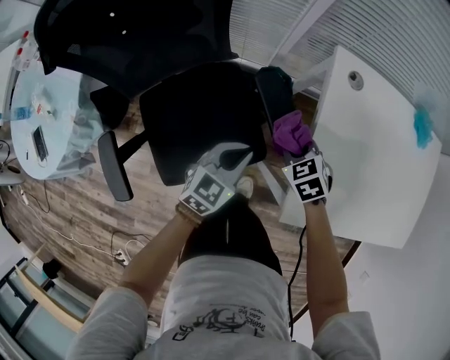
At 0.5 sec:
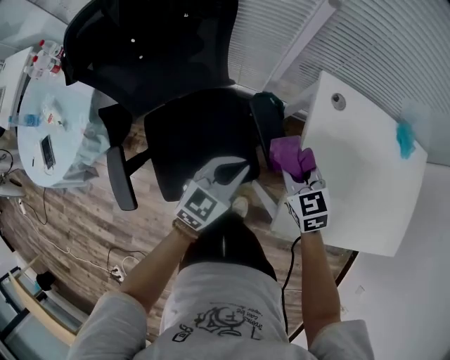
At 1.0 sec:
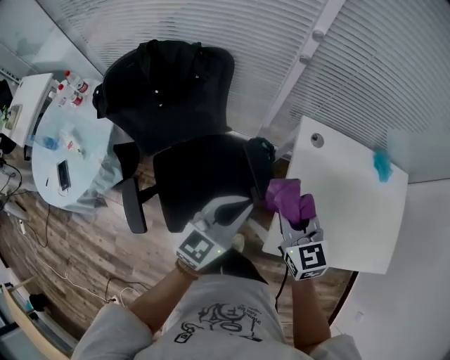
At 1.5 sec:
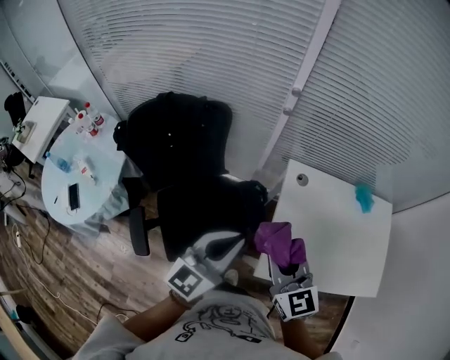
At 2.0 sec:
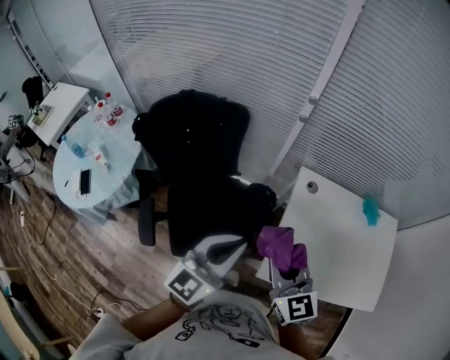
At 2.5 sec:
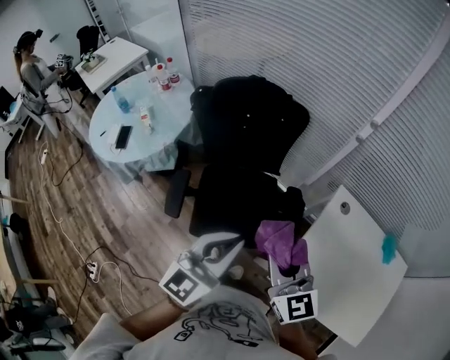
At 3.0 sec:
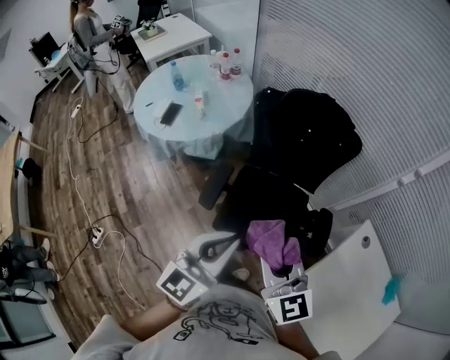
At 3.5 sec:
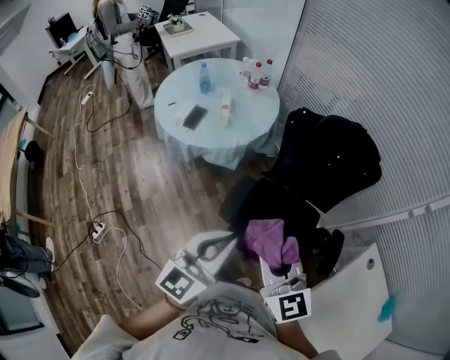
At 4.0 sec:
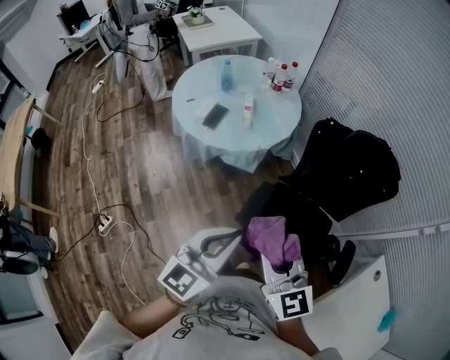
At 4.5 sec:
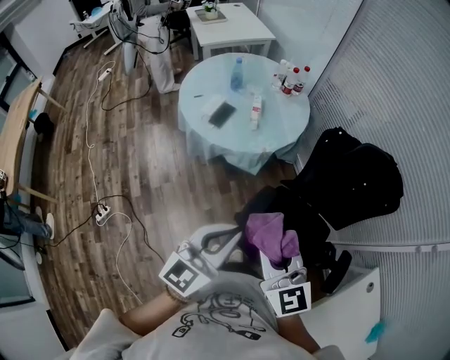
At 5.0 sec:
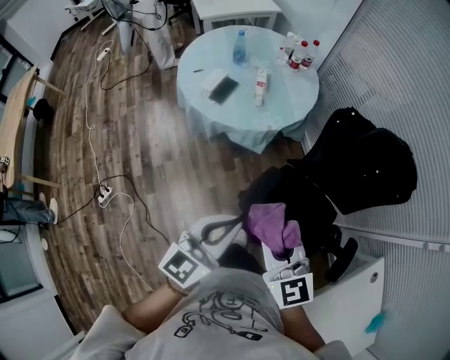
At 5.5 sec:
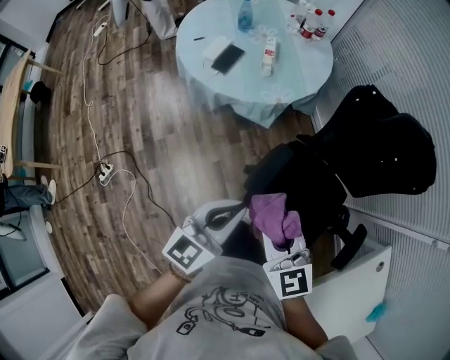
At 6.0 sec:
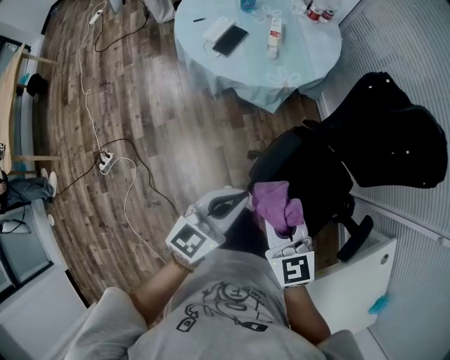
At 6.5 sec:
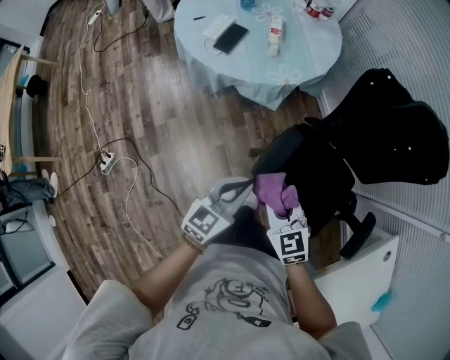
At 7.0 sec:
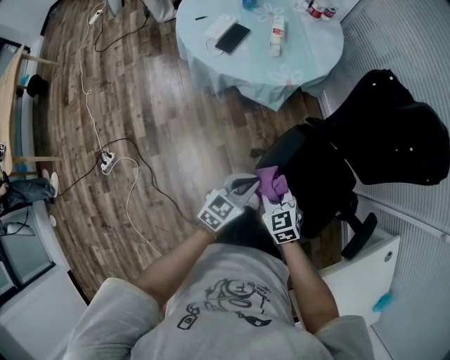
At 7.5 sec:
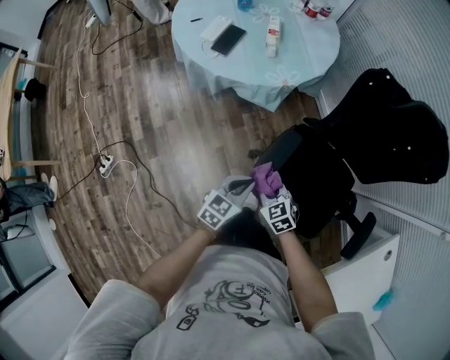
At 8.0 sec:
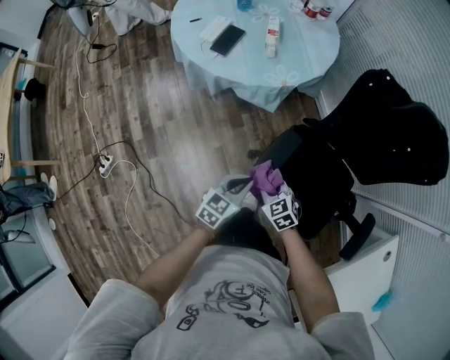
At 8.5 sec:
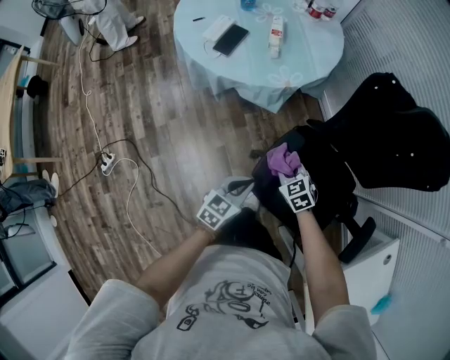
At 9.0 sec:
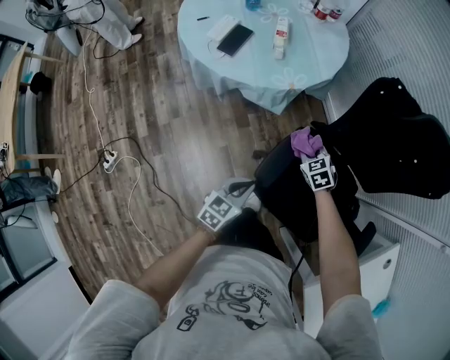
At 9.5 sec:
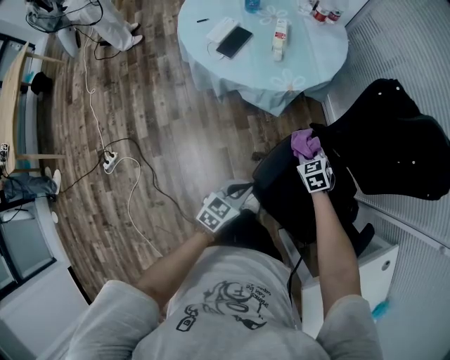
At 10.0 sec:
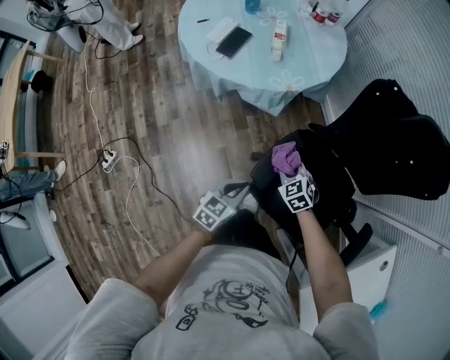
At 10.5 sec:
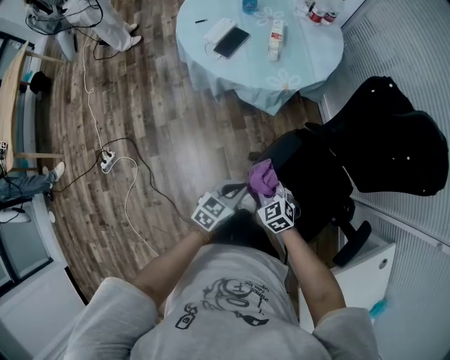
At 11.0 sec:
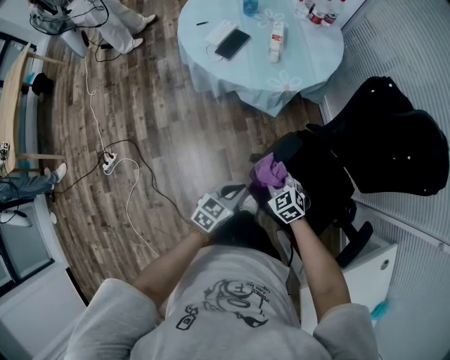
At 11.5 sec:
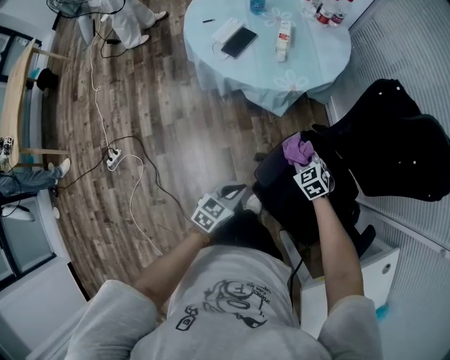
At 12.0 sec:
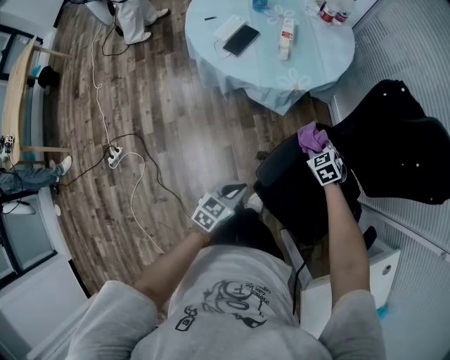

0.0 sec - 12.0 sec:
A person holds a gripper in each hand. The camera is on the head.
0.0 sec - 2.0 sec: Both grippers travel together upward, roughly 40 cm. The right gripper points its fingers approximately 50 degrees further upward. The left gripper tips its fingers upward by some 30 degrees.
2.0 sec - 4.0 sec: The pair of grippers is taken about 50 cm. The right gripper rotates approximately 50 degrees. The left gripper changes its angle by some 50 degrees.
4.0 sec - 6.0 sec: Both grippers travel together downward, roughly 20 cm.
6.0 sec - 8.0 sec: Both grippers move downward, roughly 20 cm. The right gripper turns by approximately 20 degrees.
8.0 sec - 10.0 sec: The right gripper goes some 10 cm forward.
10.0 sec - 12.0 sec: The right gripper travels forward and to the right by approximately 10 cm.

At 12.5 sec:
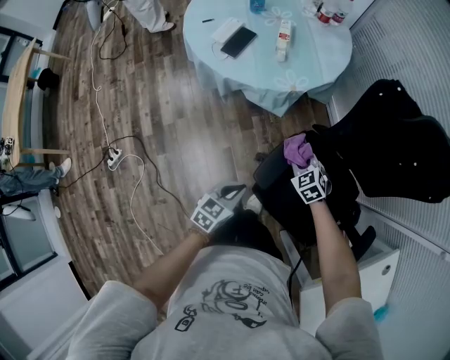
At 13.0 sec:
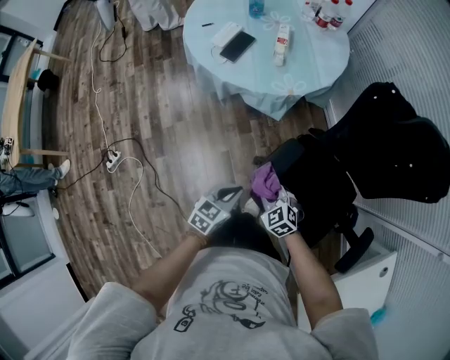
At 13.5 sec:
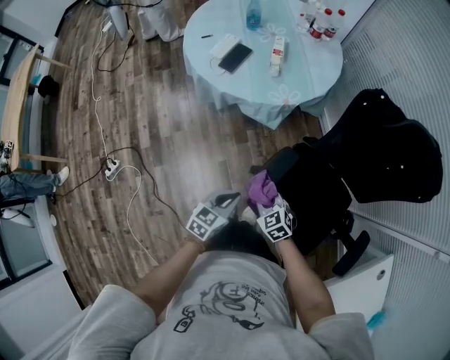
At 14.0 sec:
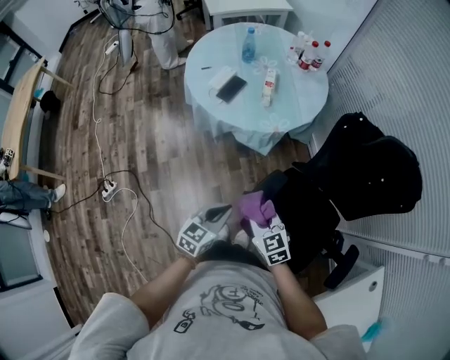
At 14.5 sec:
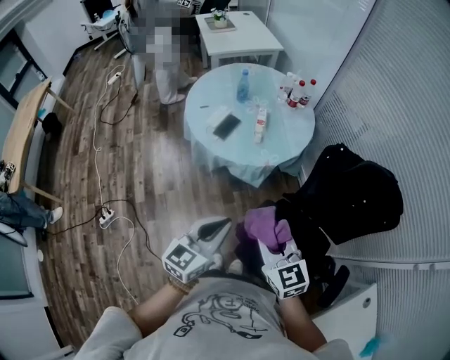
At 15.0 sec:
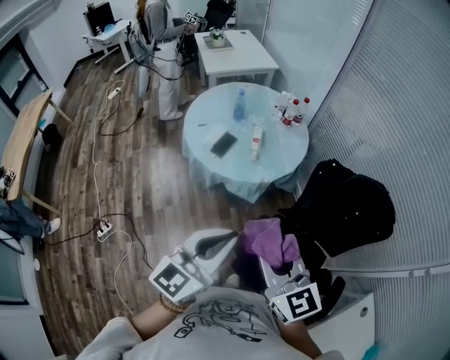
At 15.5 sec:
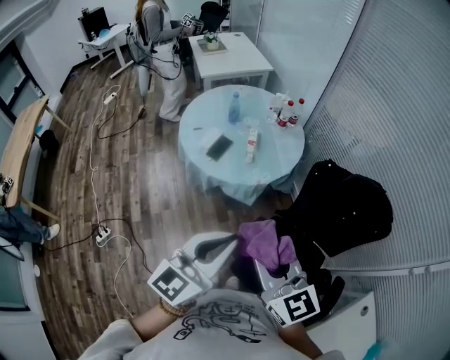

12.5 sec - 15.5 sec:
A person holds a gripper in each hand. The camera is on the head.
12.5 sec - 14.0 sec: The right gripper goes roughly 25 cm upward, backward and to the left, and rotates approximately 20 degrees. The left gripper heads upward, covering about 10 cm.
14.0 sec - 15.5 sec: The two grippers go some 35 cm upward. The right gripper swivels approximately 30 degrees; the left gripper changes its angle by roughly 30 degrees.

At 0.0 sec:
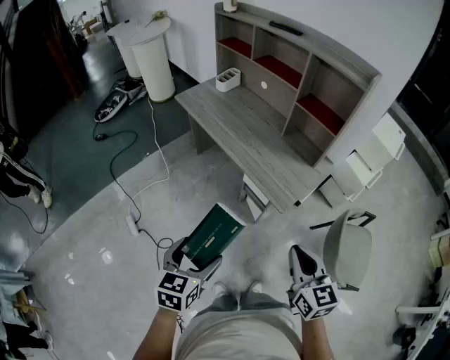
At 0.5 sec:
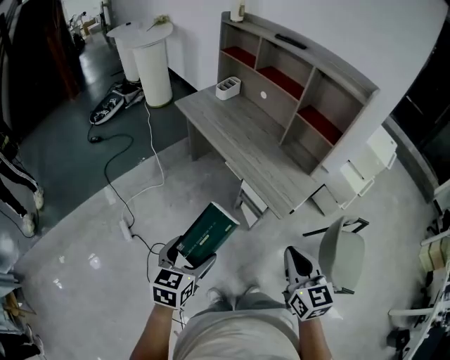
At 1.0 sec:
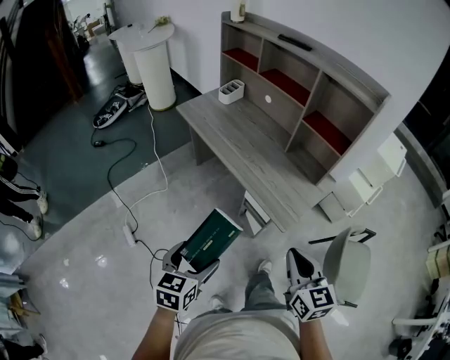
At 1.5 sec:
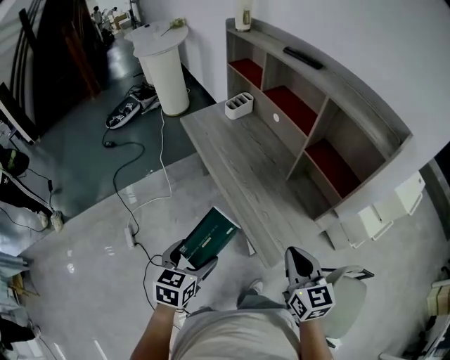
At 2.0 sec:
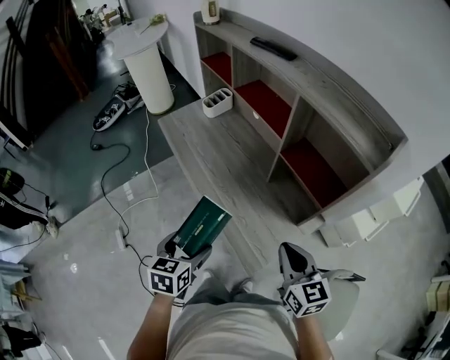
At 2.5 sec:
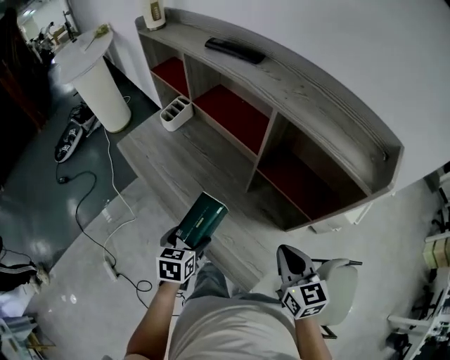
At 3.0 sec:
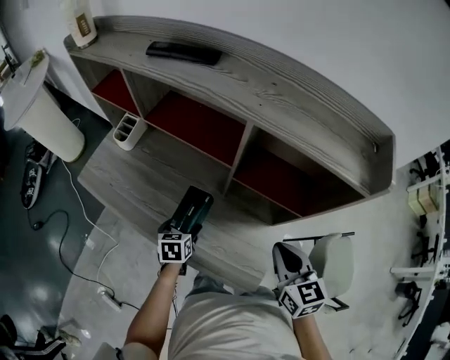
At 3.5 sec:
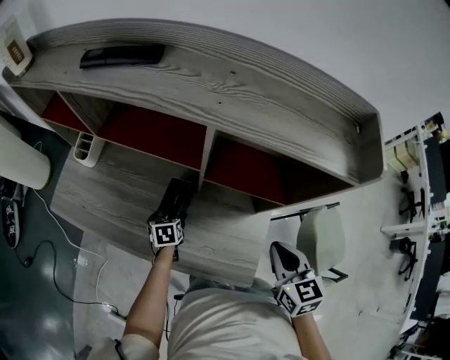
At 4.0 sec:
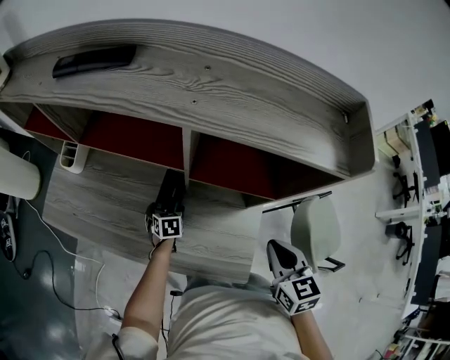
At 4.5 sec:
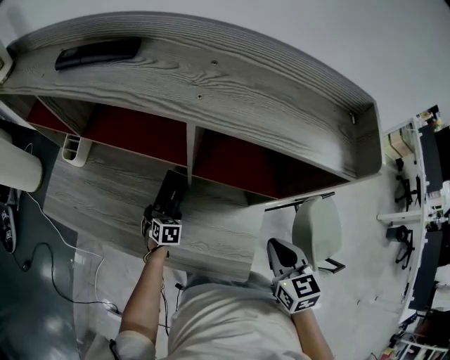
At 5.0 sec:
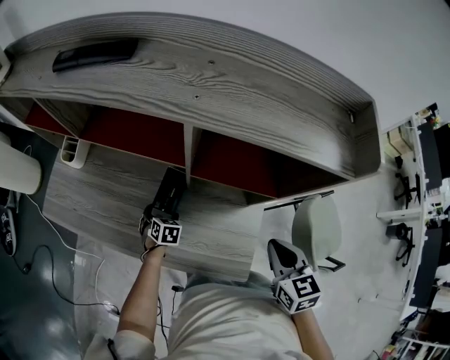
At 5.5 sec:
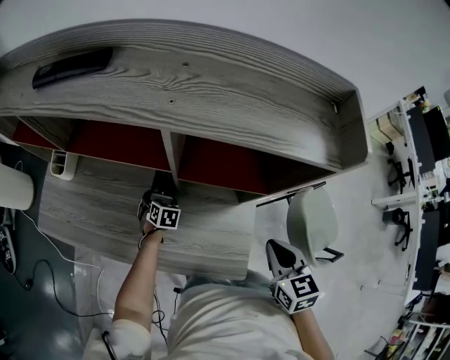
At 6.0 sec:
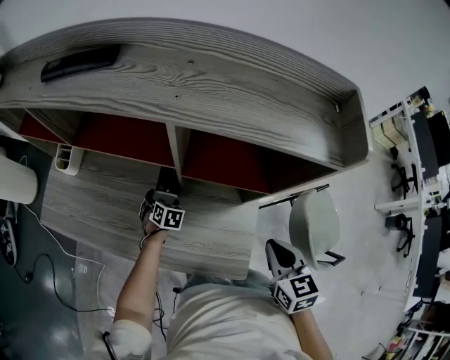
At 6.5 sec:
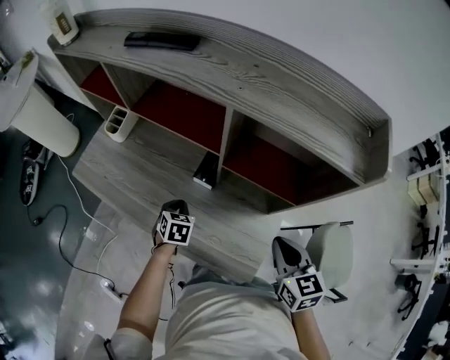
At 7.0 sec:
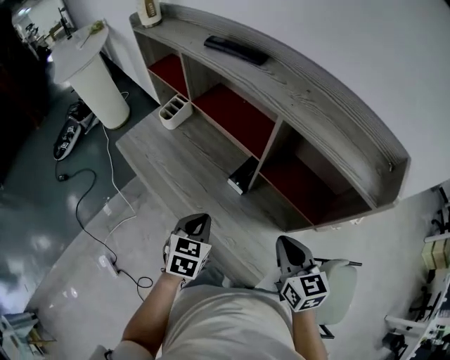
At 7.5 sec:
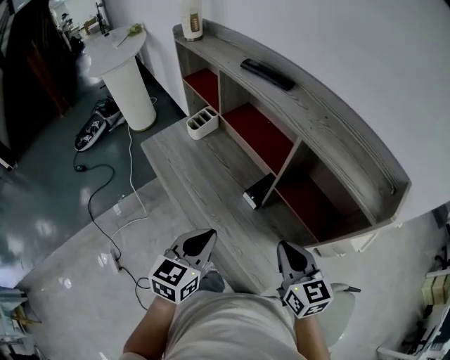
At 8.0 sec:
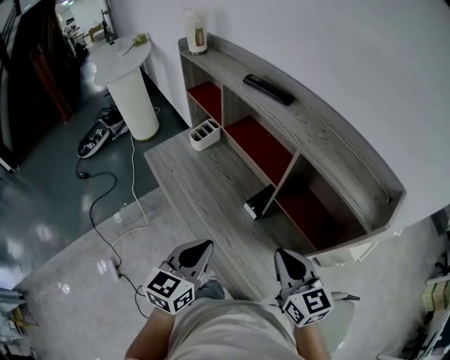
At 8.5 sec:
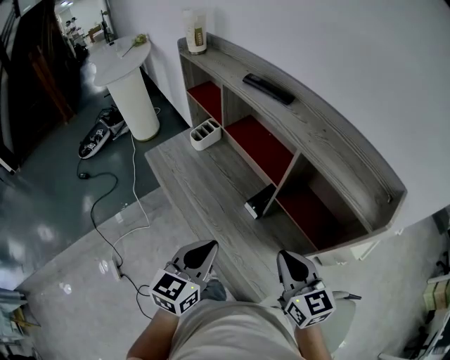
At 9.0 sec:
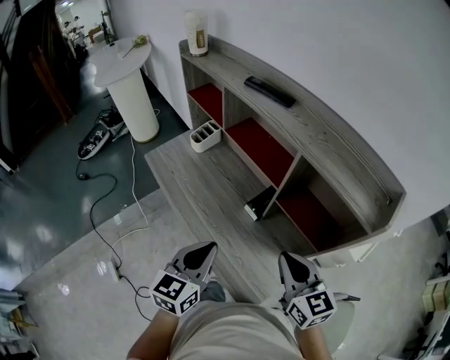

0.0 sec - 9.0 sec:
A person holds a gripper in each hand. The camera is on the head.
0.0 sec - 2.0 sec: Both grippers travel together forward, some 30 cm.
2.0 sec - 4.5 sec: The left gripper ends up about 40 cm from where it was, and rotates approximately 40 degrees, while the right gripper shifts by some 10 cm, and changes its angle by roughly 50 degrees.
4.5 sec - 7.0 sec: The left gripper goes roughly 30 cm upward and backward, changes its angle by some 30 degrees, and closes; the right gripper goes some 5 cm to the left, and swivels approximately 30 degrees.
7.0 sec - 9.0 sec: The left gripper travels upward and backward by about 15 cm, and swivels approximately 30 degrees; the right gripper heads upward, covering roughly 10 cm.

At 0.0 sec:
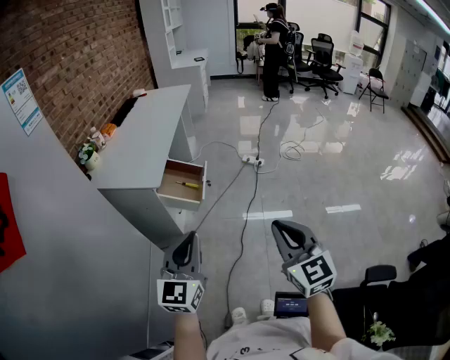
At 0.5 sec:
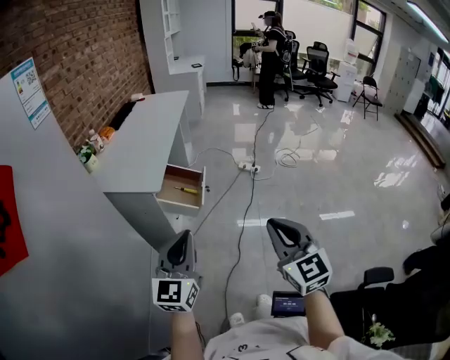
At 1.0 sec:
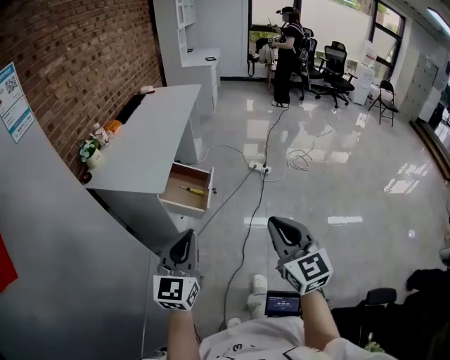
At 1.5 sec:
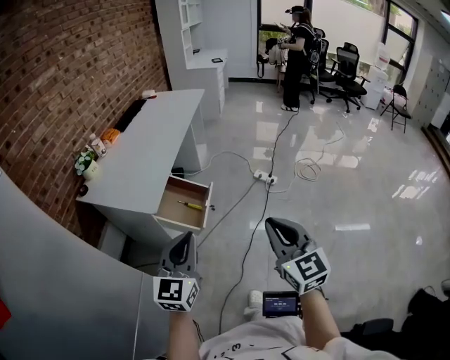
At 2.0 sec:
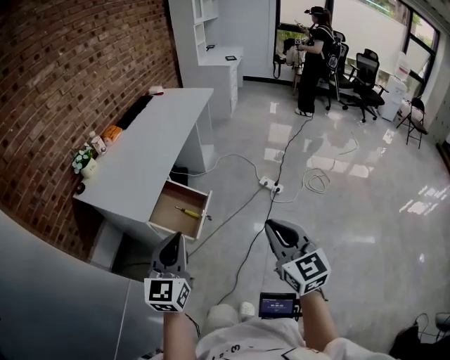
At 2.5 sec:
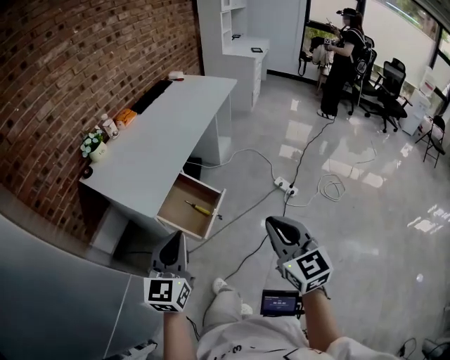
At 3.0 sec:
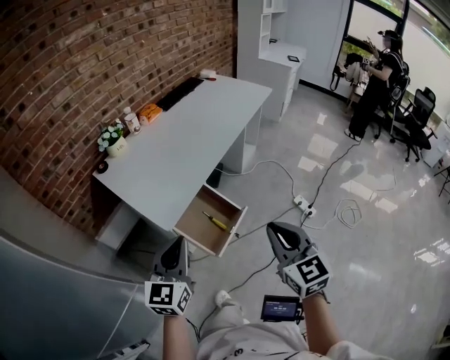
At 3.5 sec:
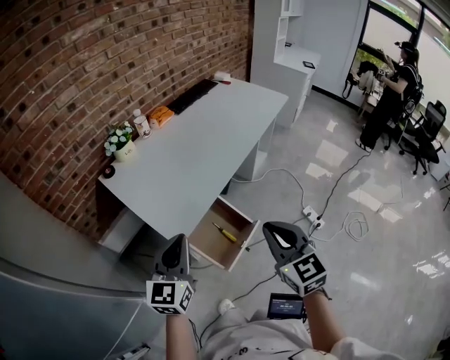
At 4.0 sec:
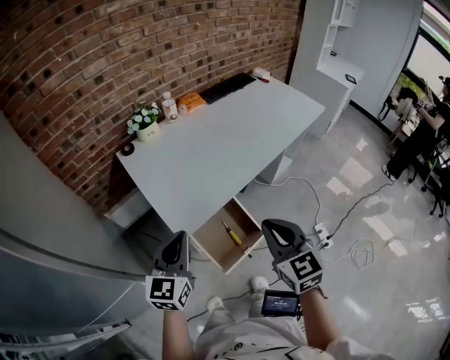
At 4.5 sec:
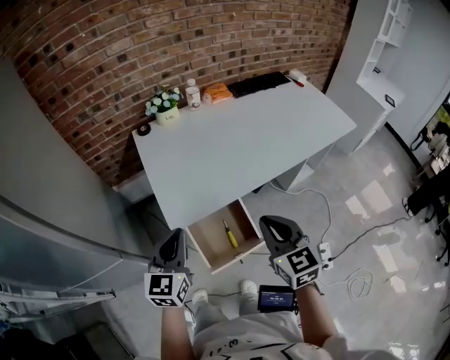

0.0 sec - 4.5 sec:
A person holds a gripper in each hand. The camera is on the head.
0.0 sec - 2.0 sec: The two grippers go approximately 30 cm forward.
2.0 sec - 4.5 sec: The left gripper shifts by approximately 25 cm, and rotates about 50 degrees; the right gripper ends up approximately 40 cm from where it was, and swivels roughly 50 degrees.
